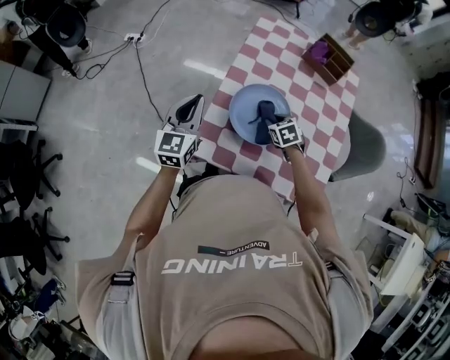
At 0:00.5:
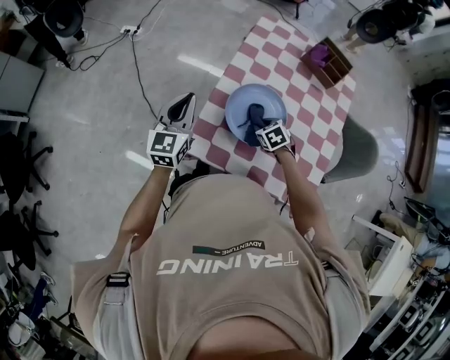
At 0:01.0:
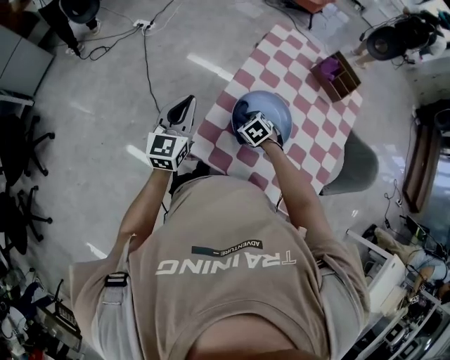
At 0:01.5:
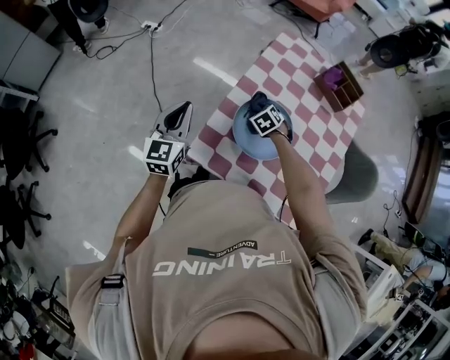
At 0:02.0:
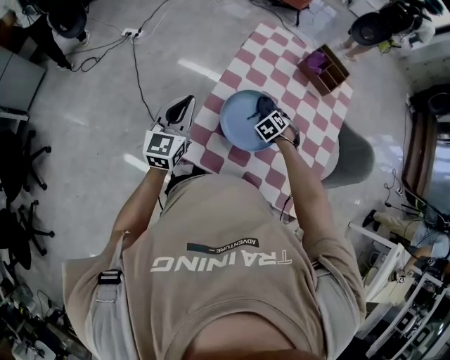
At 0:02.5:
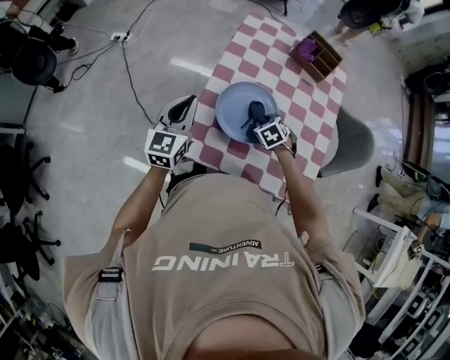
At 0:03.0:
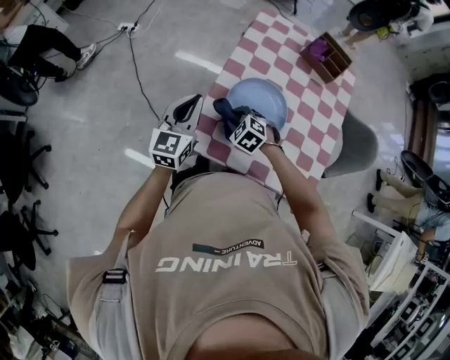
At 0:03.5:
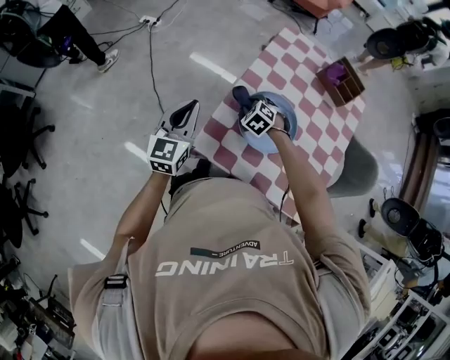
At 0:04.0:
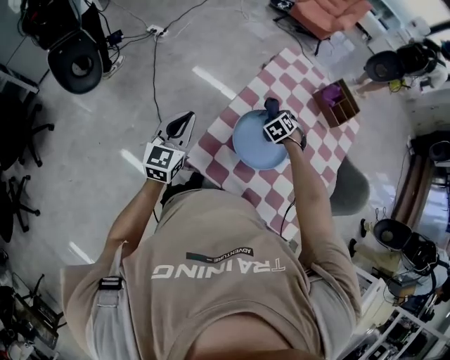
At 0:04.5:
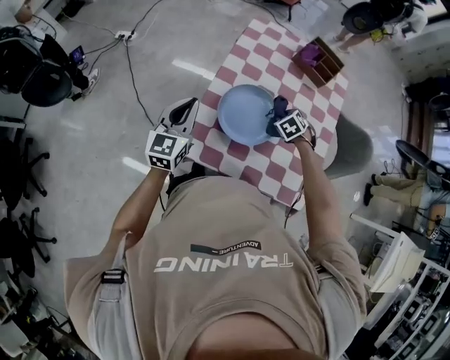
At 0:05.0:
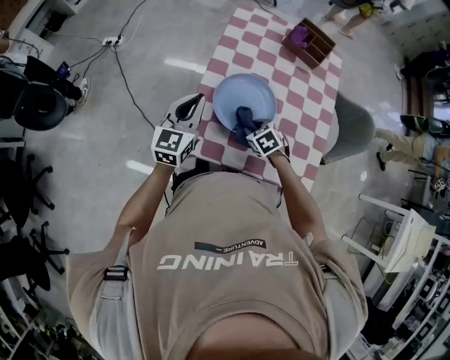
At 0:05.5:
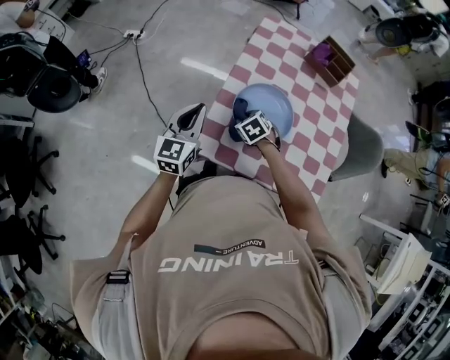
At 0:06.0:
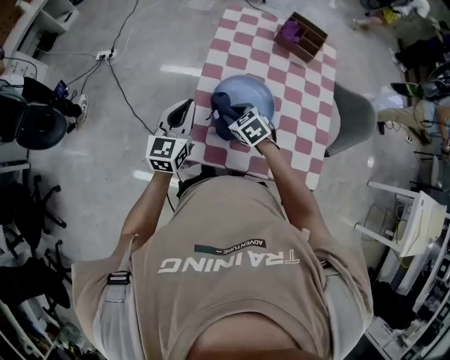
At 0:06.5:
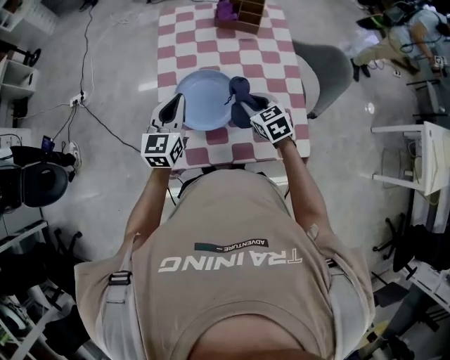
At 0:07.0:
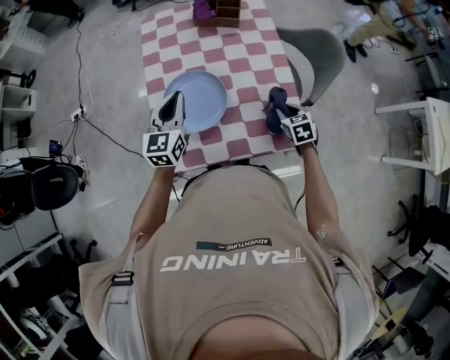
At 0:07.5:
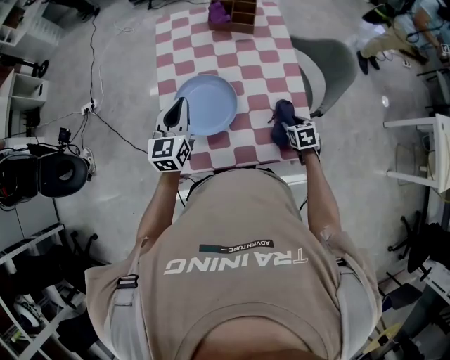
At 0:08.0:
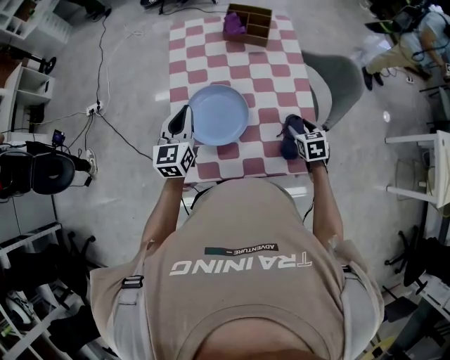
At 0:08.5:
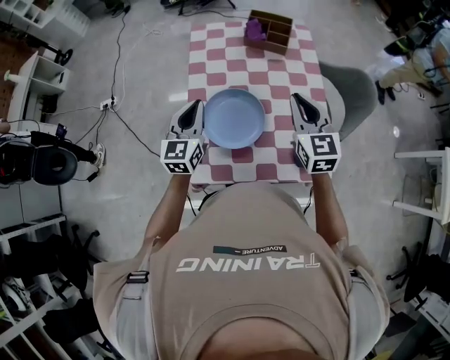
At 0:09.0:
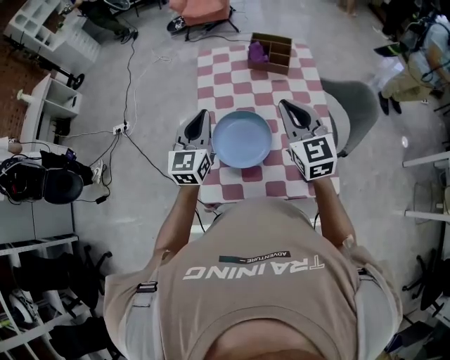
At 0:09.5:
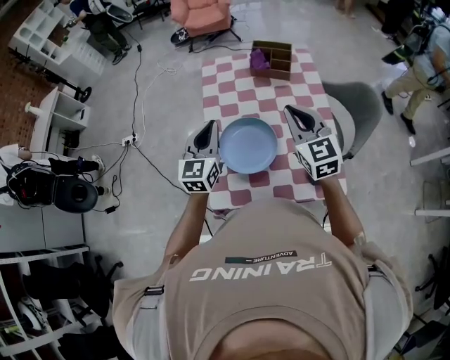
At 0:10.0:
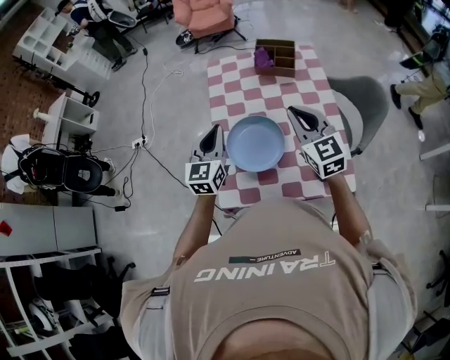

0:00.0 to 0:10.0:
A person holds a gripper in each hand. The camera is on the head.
0:00.0 to 0:02.0: The right gripper rotates some 30 degrees.
0:02.0 to 0:04.0: The left gripper goes some 5 cm to the left. The right gripper goes roughly 5 cm forward.
0:04.0 to 0:06.0: The left gripper shifts approximately 10 cm to the right. The right gripper is displaced backward and to the left by about 15 cm, and rotates roughly 40 degrees.
0:06.0 to 0:08.0: The left gripper moves some 10 cm. The right gripper swings up and down, about 10 cm each way, with 2 reversals, swivels some 40 degrees, and opens.
0:08.0 to 0:10.0: The right gripper moves upward and to the left, roughly 30 cm, angles its fingers upward, by roughly 40 degrees, and closes its fingers, while the left gripper heads upward, covering some 5 cm.

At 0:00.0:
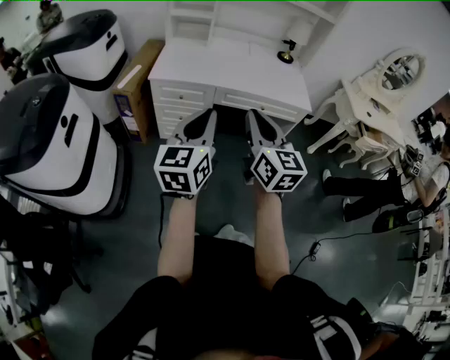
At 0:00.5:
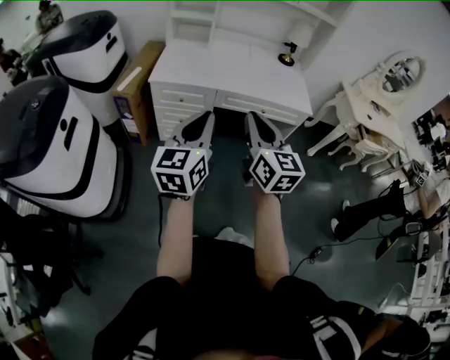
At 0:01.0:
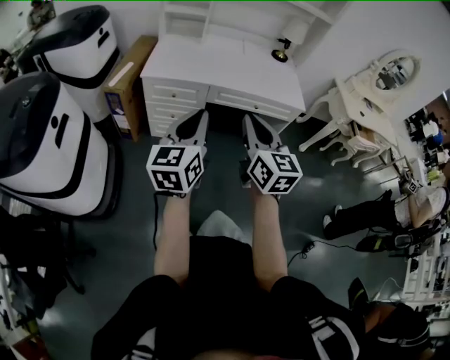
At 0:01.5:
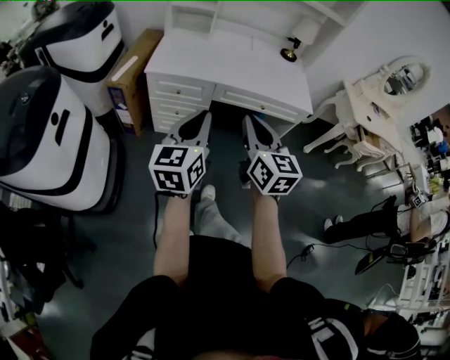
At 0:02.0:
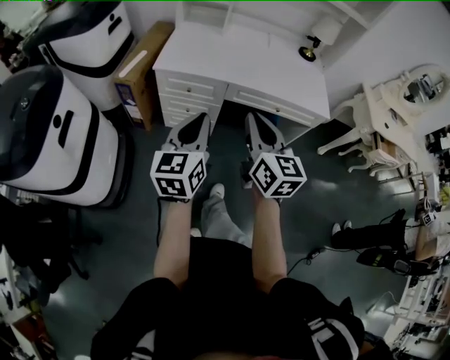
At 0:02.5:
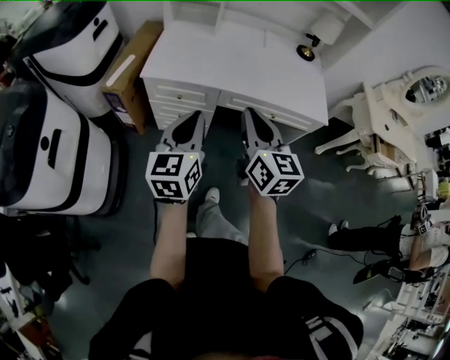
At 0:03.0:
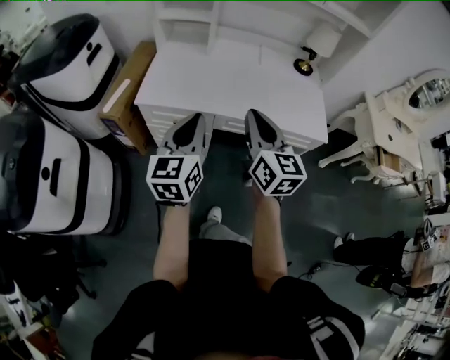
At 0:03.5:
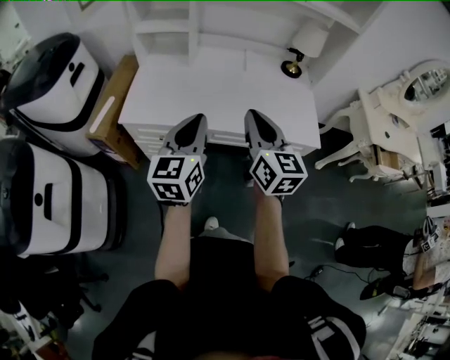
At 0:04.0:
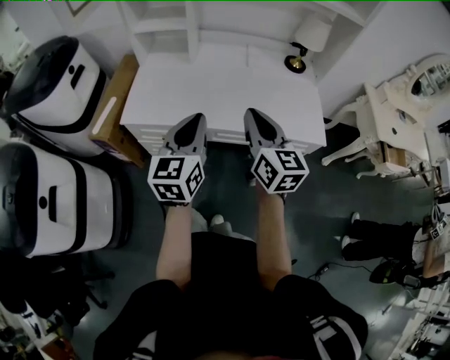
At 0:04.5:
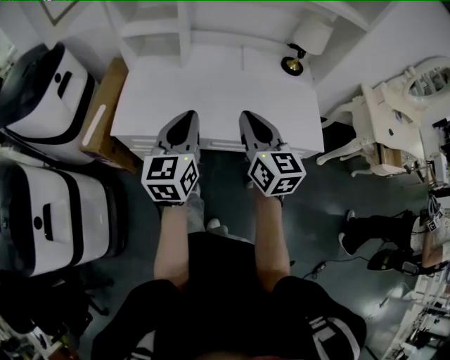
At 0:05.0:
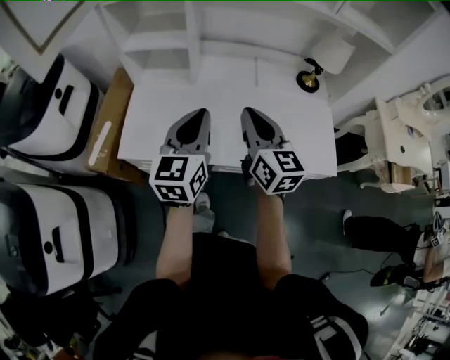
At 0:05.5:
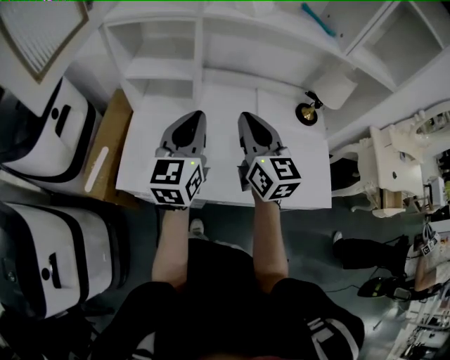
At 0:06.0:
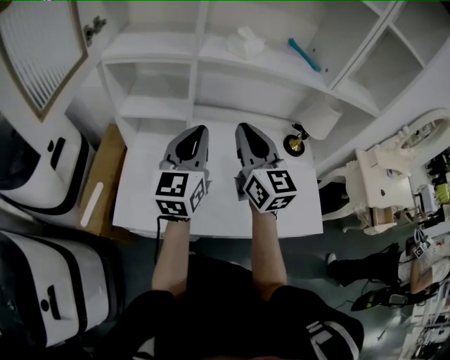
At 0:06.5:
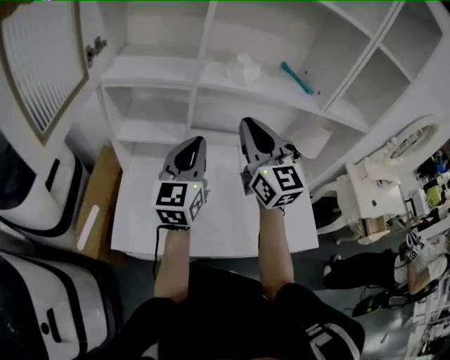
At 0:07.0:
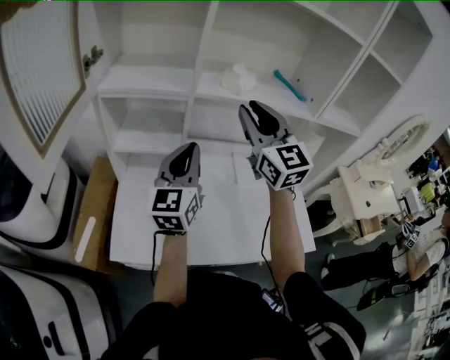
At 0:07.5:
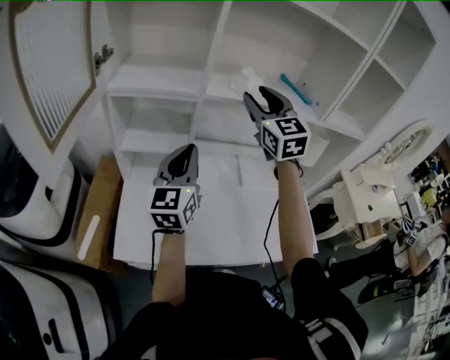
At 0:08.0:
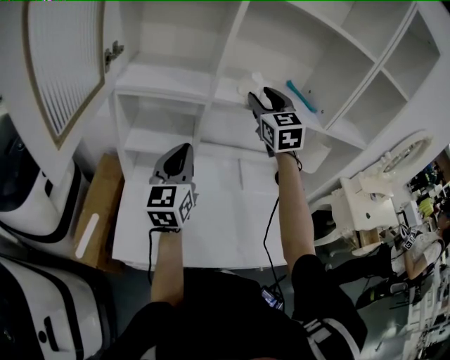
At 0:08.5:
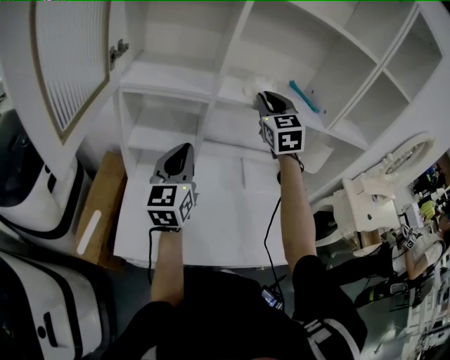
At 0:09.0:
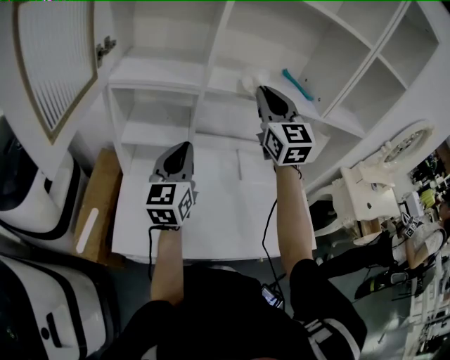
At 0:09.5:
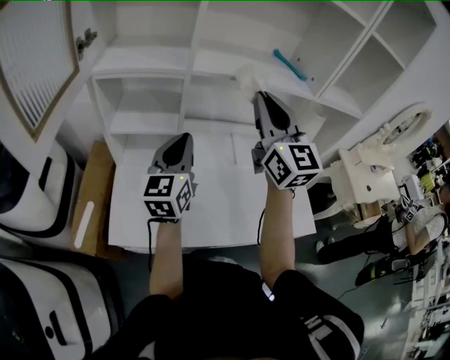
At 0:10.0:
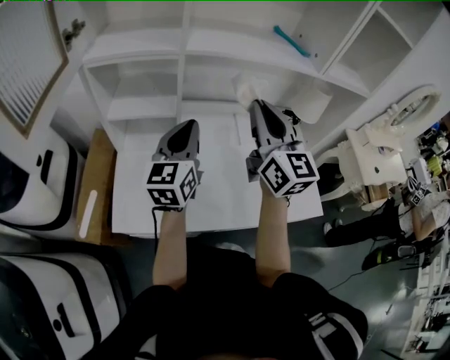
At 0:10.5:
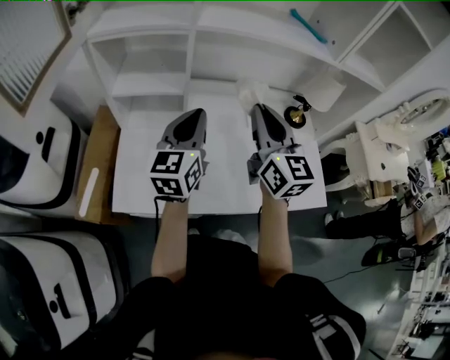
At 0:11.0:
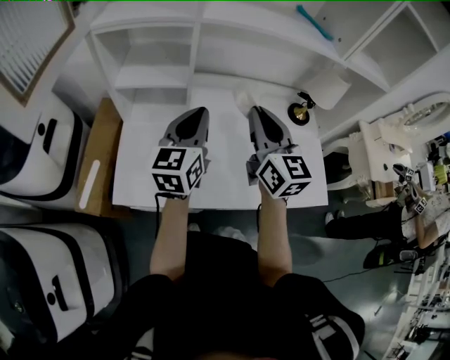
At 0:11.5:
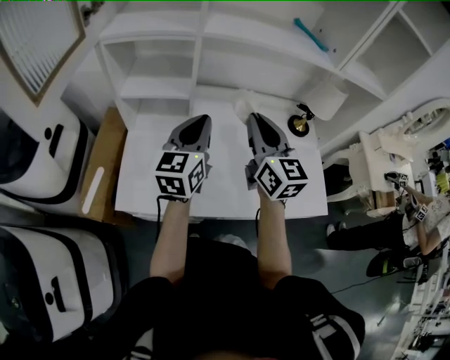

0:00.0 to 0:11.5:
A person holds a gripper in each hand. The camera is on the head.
0:00.0 to 0:02.0: Both grippers travel together forward and downward, approximately 15 cm.
0:02.0 to 0:04.0: The grippers both shift forward and to the right by roughly 30 cm.
0:04.0 to 0:06.0: The two grippers go some 35 cm forward.
0:06.0 to 0:07.5: The left gripper moves to the left, roughly 5 cm. The right gripper travels forward and upward by about 20 cm, turns by some 30 degrees, and opens up.
0:07.5 to 0:09.5: The right gripper goes some 10 cm backward, changes its angle by some 20 degrees, and closes its fingers.
0:09.5 to 0:11.5: The right gripper shifts about 15 cm downward. Meanwhile the left gripper ends up roughly 5 cm from where it was.

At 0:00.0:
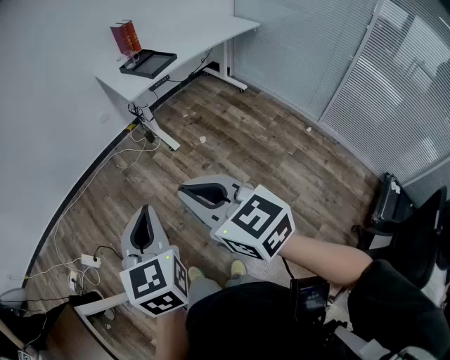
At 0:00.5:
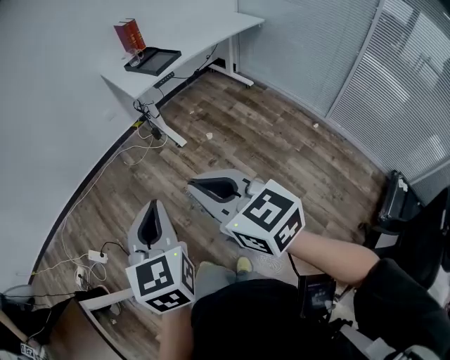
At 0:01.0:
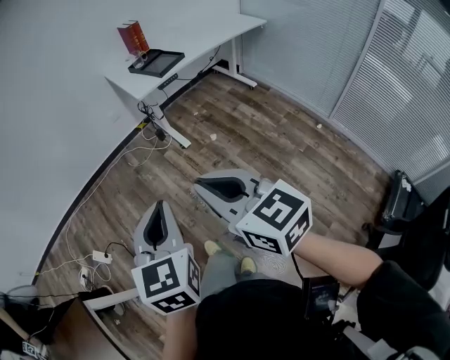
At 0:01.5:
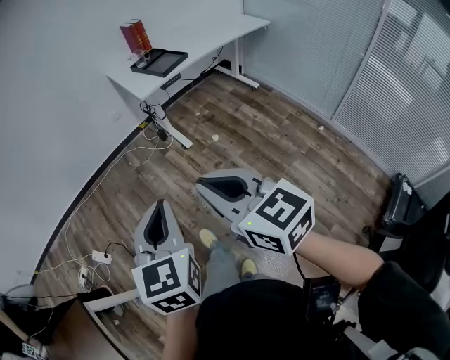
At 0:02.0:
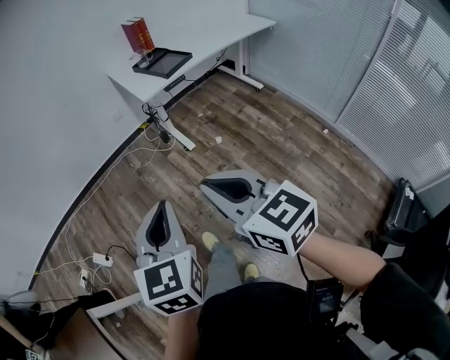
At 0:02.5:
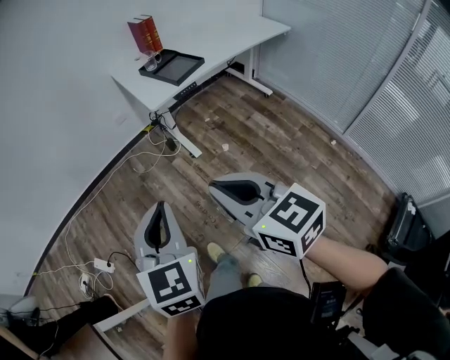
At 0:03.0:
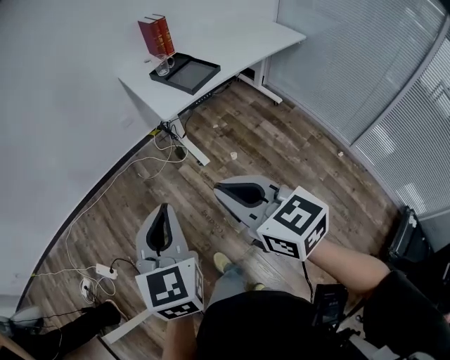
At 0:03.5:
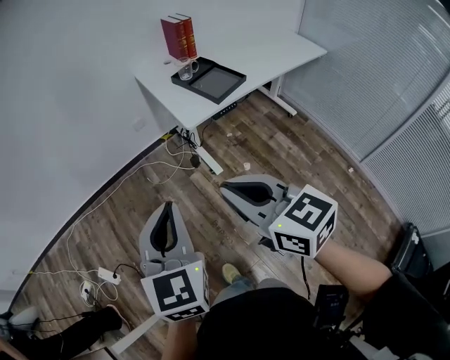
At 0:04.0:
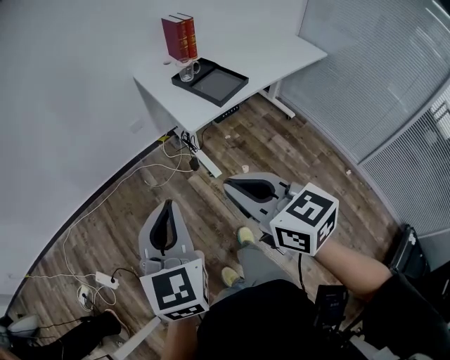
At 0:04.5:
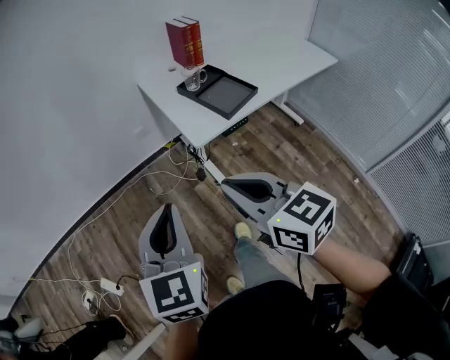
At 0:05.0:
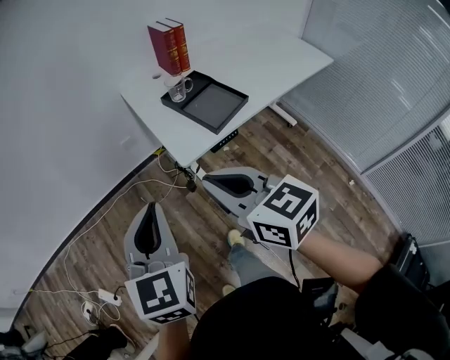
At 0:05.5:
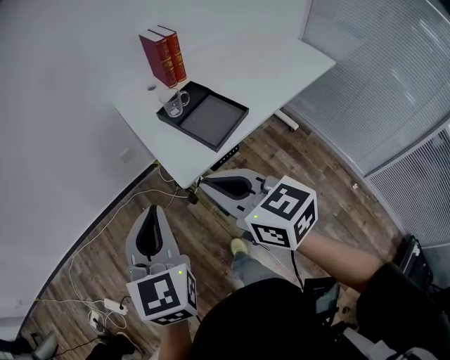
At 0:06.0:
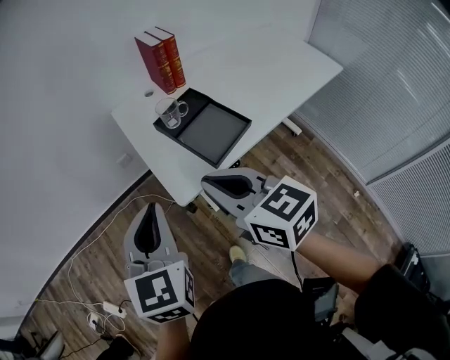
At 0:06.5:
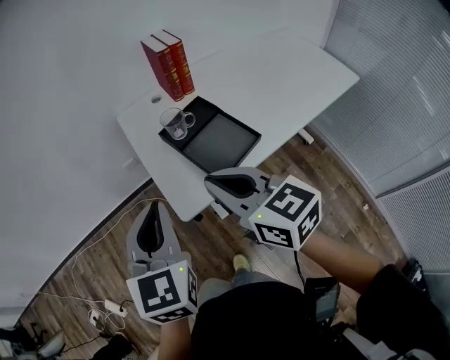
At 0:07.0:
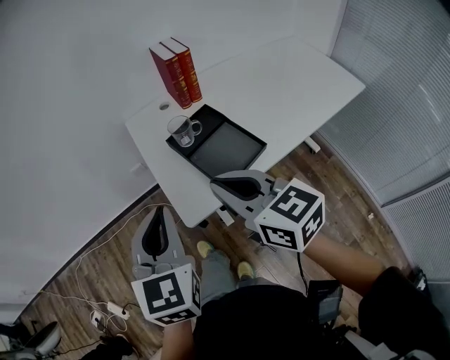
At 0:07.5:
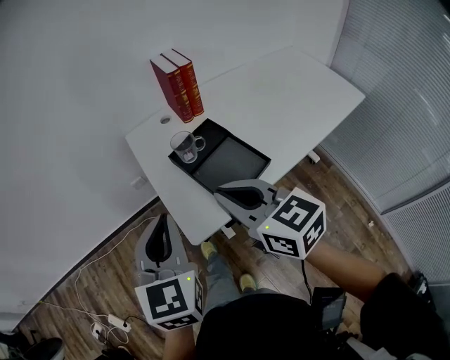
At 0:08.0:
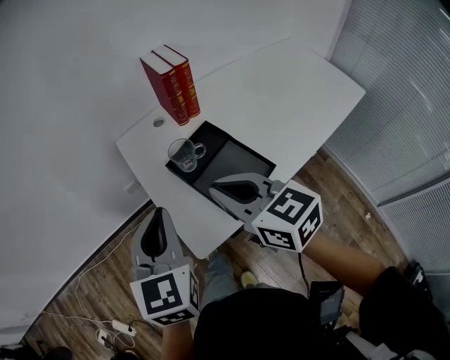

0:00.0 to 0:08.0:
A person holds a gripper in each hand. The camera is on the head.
0:00.0 to 0:02.0: The right gripper moves roughly 5 cm.
0:02.0 to 0:04.0: The two grippers go roughly 30 cm forward.
0:04.0 to 0:06.0: Both grippers travel together forward and to the right, roughly 30 cm.
0:06.0 to 0:08.0: Both grippers travel together forward, about 15 cm.
